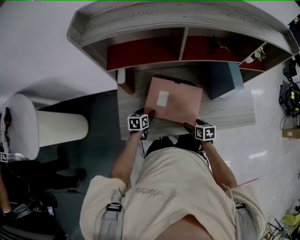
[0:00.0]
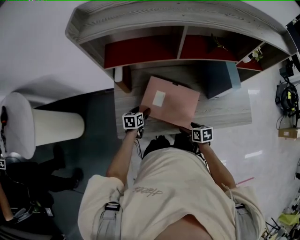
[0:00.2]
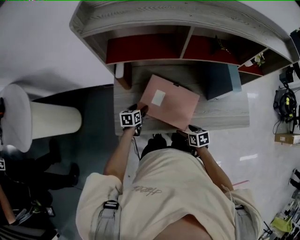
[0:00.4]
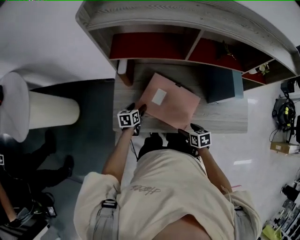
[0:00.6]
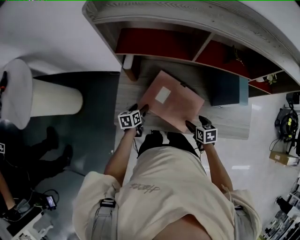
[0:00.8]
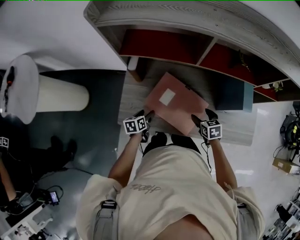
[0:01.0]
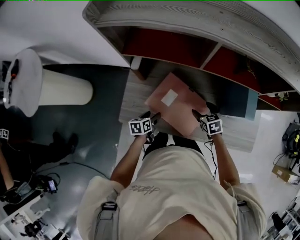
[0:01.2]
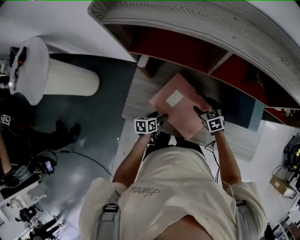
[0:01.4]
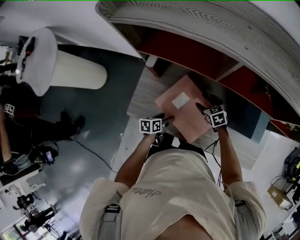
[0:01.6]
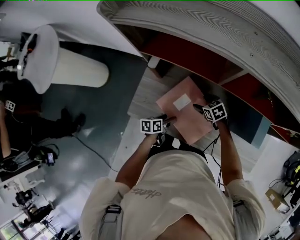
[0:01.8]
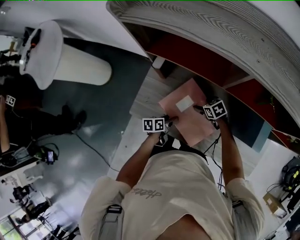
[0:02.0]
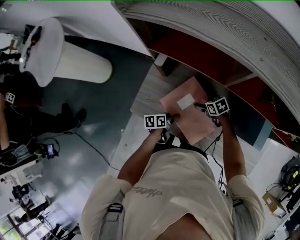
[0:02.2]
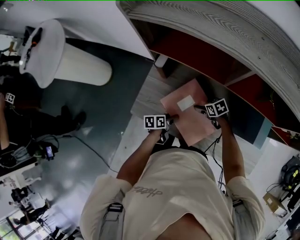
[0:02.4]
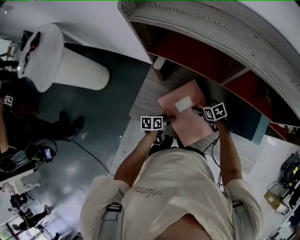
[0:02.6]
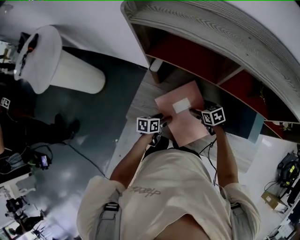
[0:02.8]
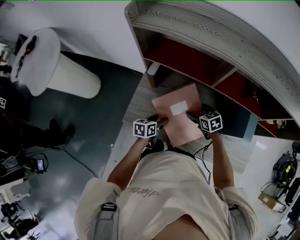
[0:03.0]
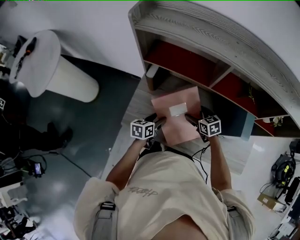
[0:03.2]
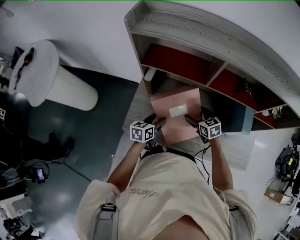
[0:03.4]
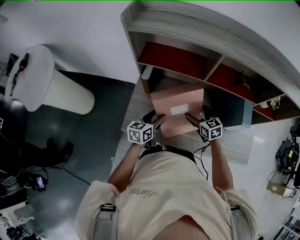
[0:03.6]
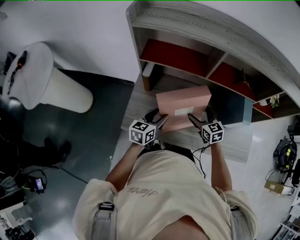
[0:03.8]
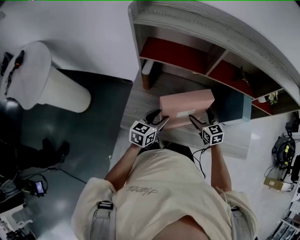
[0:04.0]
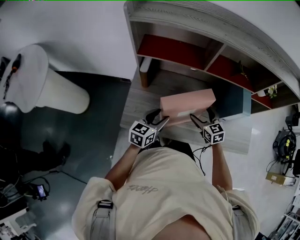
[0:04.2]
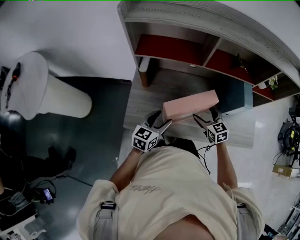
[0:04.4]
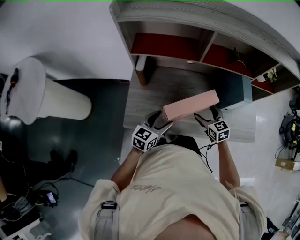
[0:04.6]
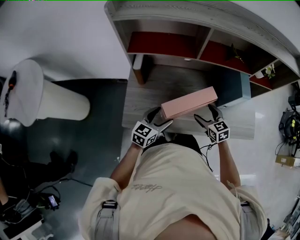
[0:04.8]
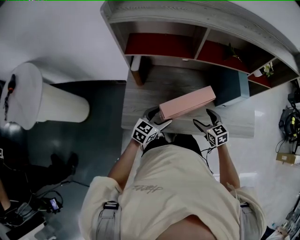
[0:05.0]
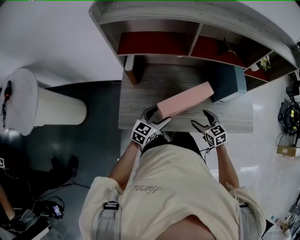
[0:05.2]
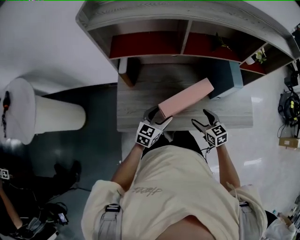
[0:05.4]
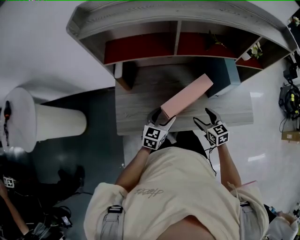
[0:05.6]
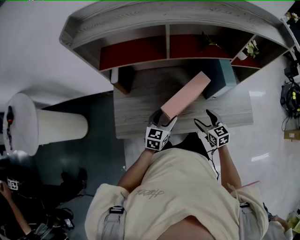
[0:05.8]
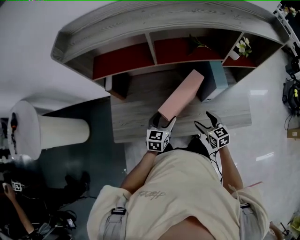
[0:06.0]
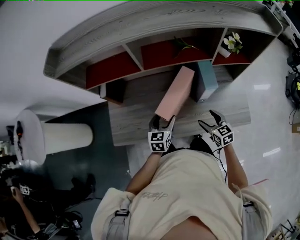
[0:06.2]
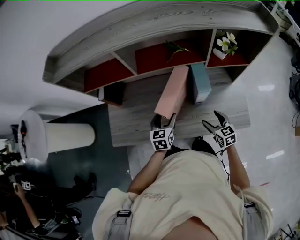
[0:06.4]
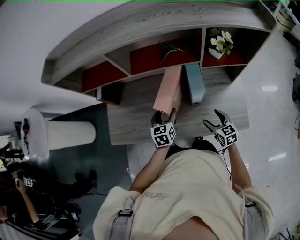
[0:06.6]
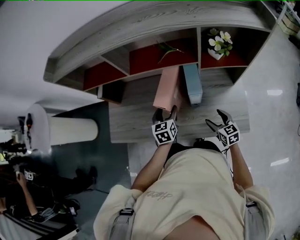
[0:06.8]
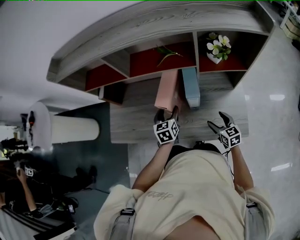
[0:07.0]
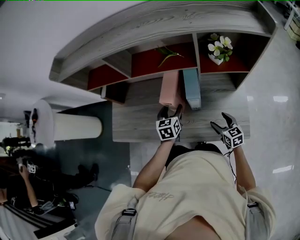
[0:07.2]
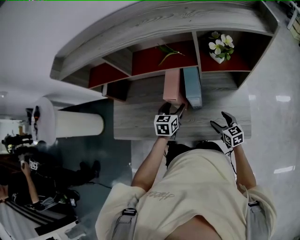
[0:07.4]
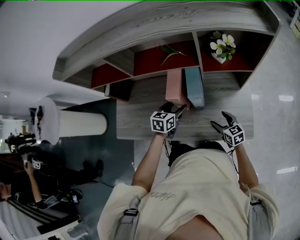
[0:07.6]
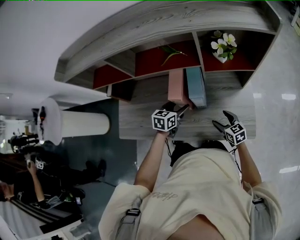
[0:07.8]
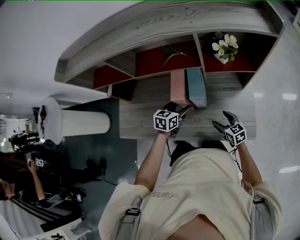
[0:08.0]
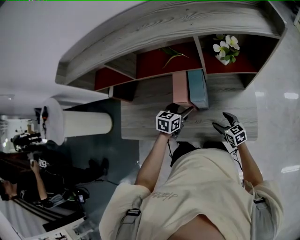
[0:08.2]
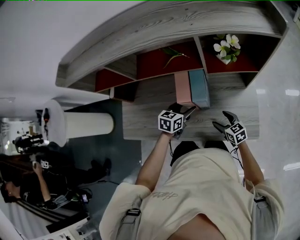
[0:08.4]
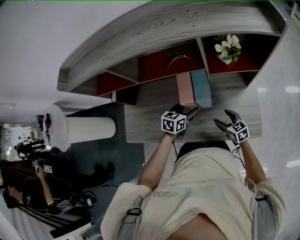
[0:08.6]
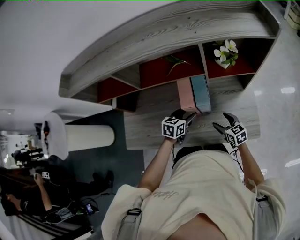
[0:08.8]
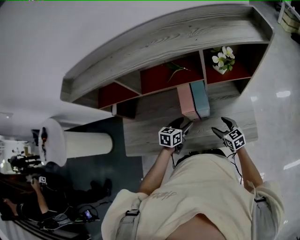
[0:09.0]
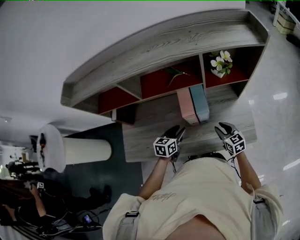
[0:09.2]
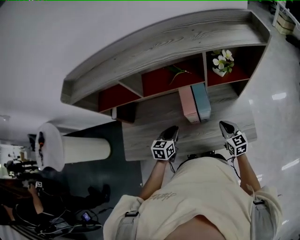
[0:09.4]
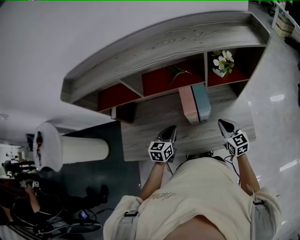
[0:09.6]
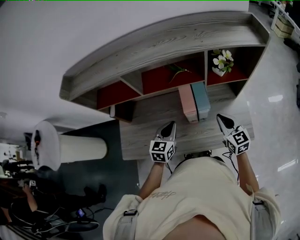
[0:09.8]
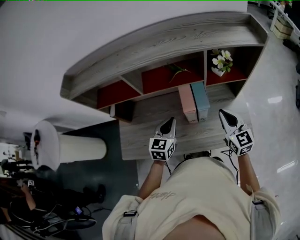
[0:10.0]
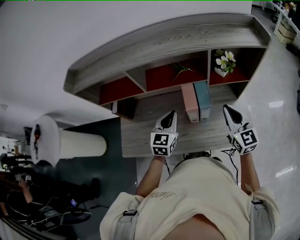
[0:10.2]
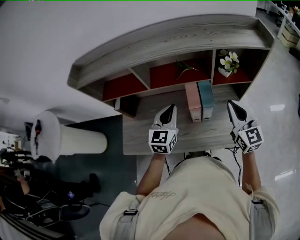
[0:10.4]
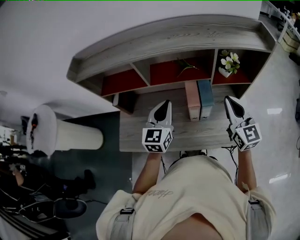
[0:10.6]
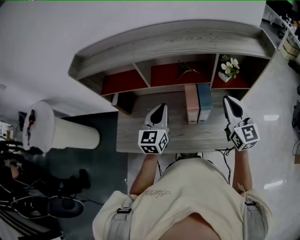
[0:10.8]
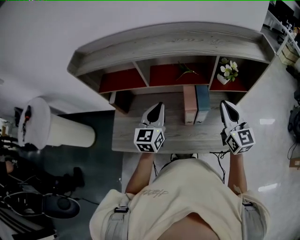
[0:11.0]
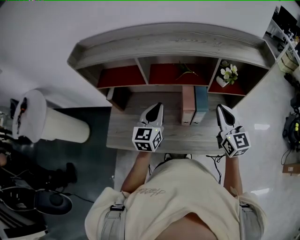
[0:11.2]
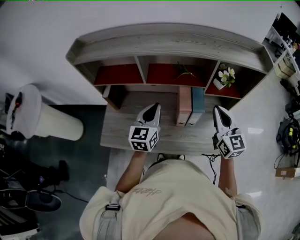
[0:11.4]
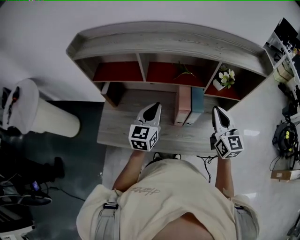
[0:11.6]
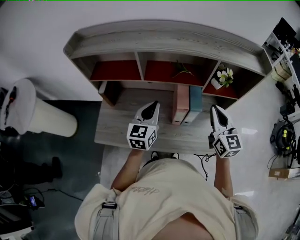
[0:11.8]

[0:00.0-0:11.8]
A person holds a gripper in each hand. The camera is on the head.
0:00.0 to 0:01.4: The left gripper is displaced backward by some 5 cm, and rotates roughly 30 degrees, while the right gripper goes some 15 cm forward, and rotates around the line of its fingers by approximately 50 degrees, counterclockwise from behind.
0:01.4 to 0:03.0: The left gripper heads upward, covering some 10 cm.
0:03.0 to 0:04.4: The right gripper moves backward and upward, roughly 10 cm, and changes its angle by roughly 30 degrees. Meanwhile the left gripper is displaced upward by about 10 cm, and turns by approximately 40 degrees.
0:04.4 to 0:06.0: The left gripper travels to the right by some 15 cm; the right gripper moves to the right and backward, some 15 cm.
0:06.0 to 0:07.4: The two grippers go some 20 cm to the right.
0:07.4 to 0:08.8: There are only small adjustments of the grippers.
0:08.8 to 0:10.4: Both grippers travel together upward, approximately 25 cm. The left gripper rotates about 40 degrees, and closes. Meanwhile the right gripper changes its angle by about 40 degrees, and closes up.
0:10.4 to 0:11.8: The grippers stay close to where they were, moving slightly.

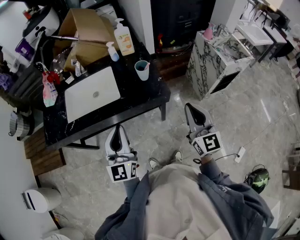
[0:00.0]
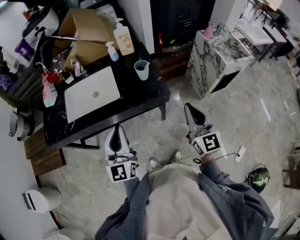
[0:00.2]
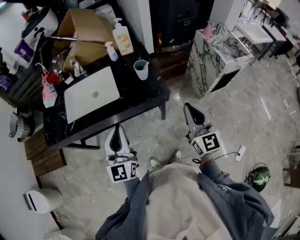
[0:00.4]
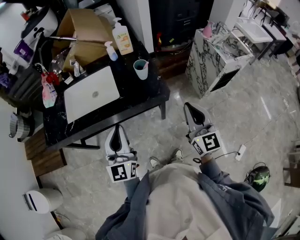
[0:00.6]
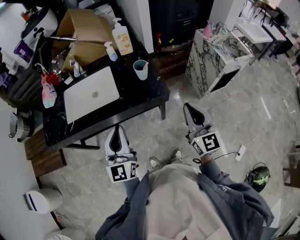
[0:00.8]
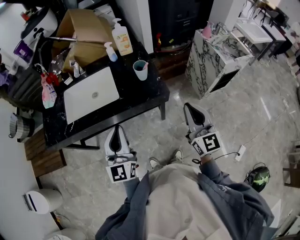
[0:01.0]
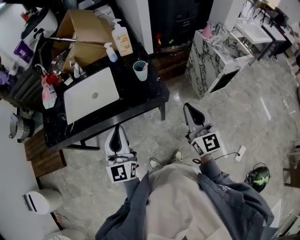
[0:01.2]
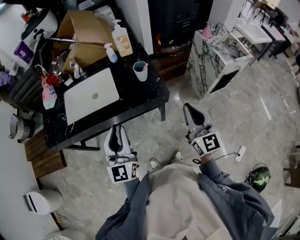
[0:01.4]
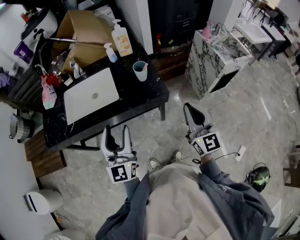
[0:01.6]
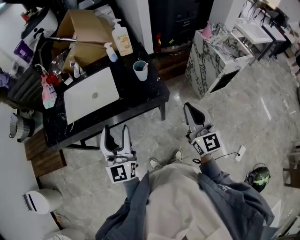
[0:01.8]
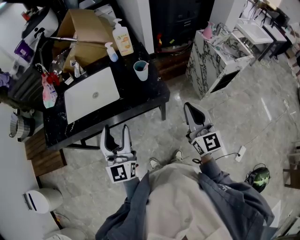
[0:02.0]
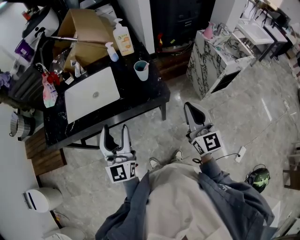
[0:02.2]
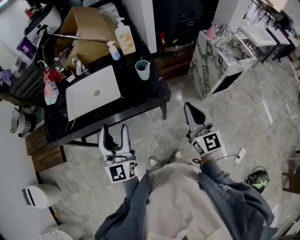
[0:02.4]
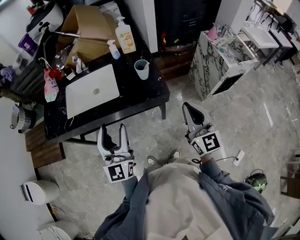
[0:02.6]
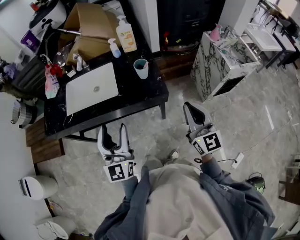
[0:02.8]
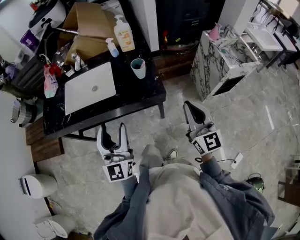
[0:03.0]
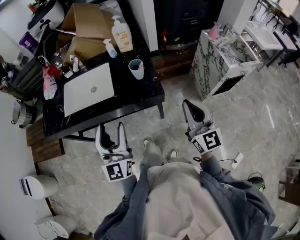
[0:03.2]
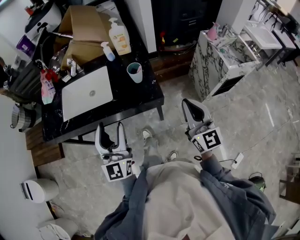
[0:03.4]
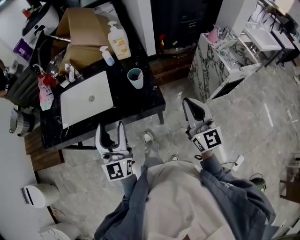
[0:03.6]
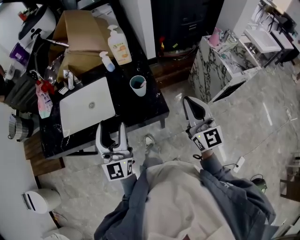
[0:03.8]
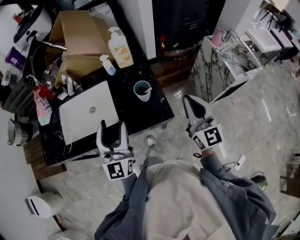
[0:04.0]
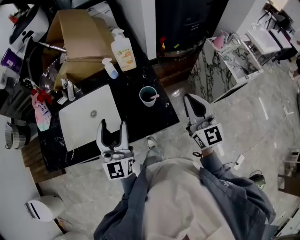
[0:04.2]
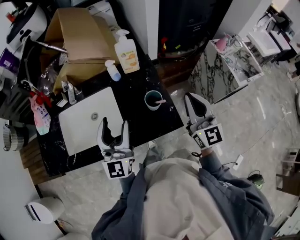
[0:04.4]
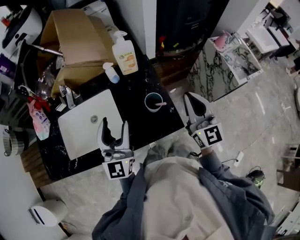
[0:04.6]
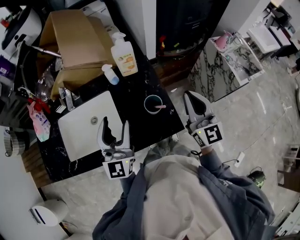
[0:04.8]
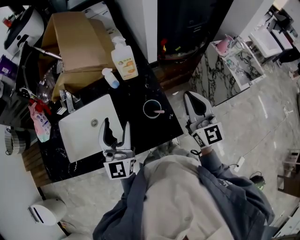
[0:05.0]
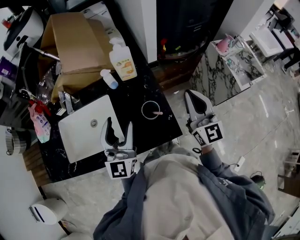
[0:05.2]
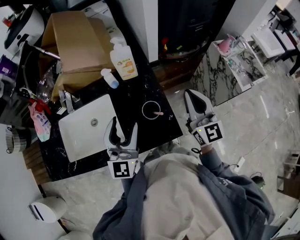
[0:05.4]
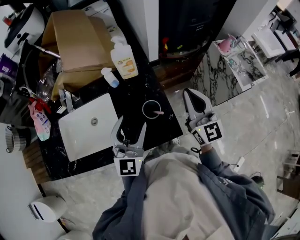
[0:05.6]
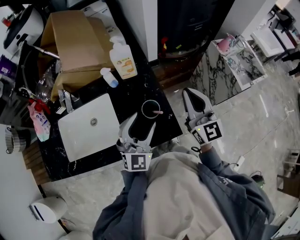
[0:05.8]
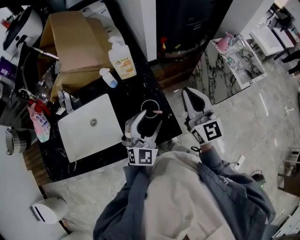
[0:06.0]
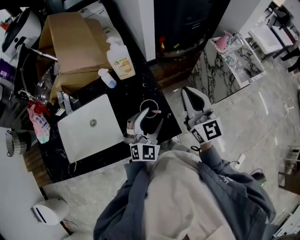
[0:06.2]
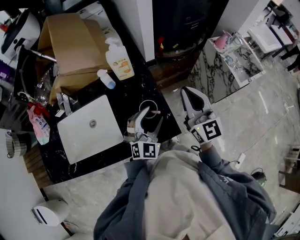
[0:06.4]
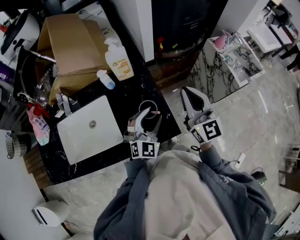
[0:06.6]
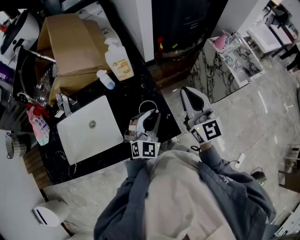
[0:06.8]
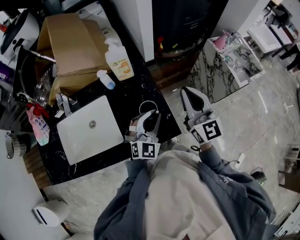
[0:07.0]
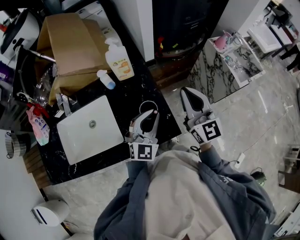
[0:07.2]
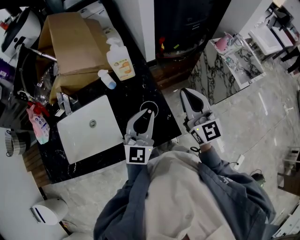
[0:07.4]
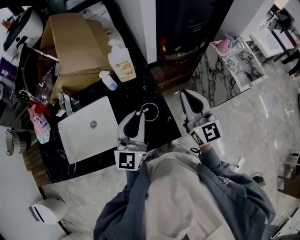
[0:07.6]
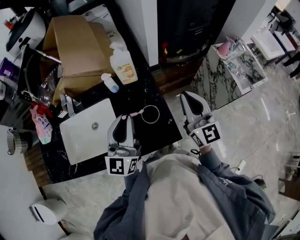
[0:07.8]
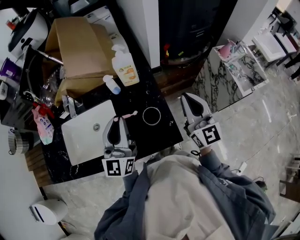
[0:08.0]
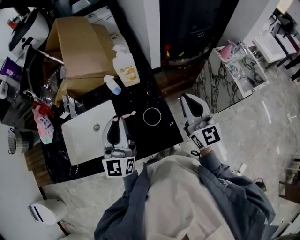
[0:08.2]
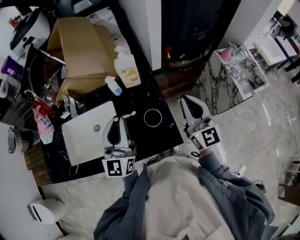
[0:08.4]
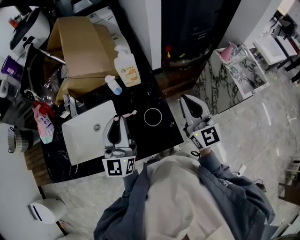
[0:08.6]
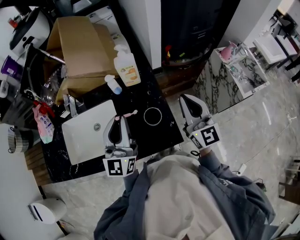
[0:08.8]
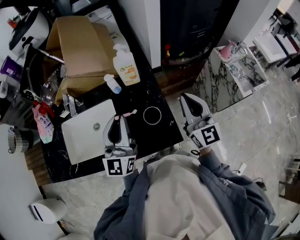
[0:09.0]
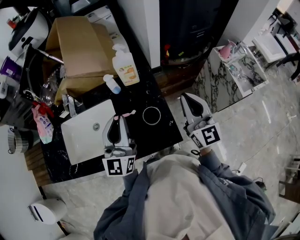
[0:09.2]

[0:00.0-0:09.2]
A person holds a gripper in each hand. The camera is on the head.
0:00.0 to 0:01.6: The left gripper opens up.
0:01.6 to 0:03.0: The grippers make only small movements.
0:03.0 to 0:04.6: Both grippers travel together forward, about 25 cm.
0:04.6 to 0:06.2: The right gripper ends up approximately 5 cm from where it was. Meanwhile the left gripper travels to the right and downward by approximately 20 cm, and turns by some 40 degrees.
0:06.2 to 0:07.6: The left gripper moves upward and to the left, approximately 10 cm, rotates some 40 degrees, and closes up.
0:07.6 to 0:09.2: The left gripper goes roughly 10 cm to the left.

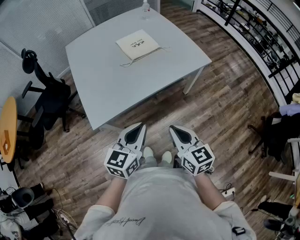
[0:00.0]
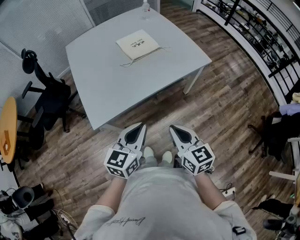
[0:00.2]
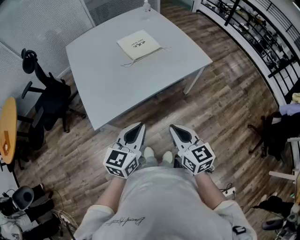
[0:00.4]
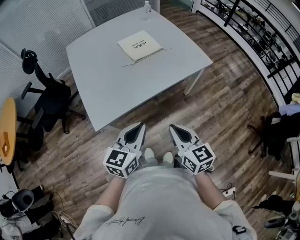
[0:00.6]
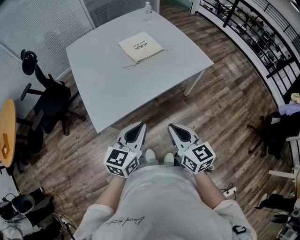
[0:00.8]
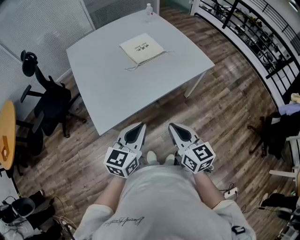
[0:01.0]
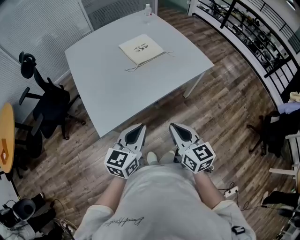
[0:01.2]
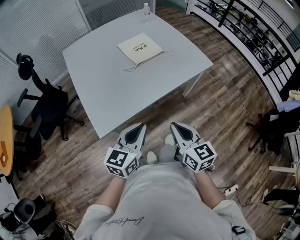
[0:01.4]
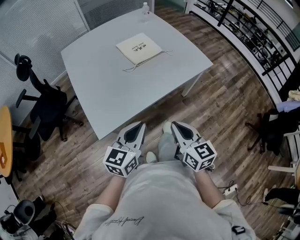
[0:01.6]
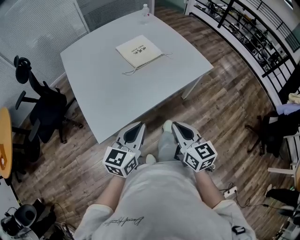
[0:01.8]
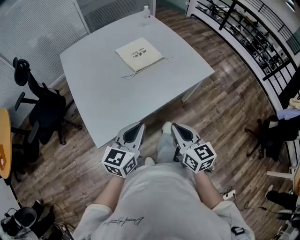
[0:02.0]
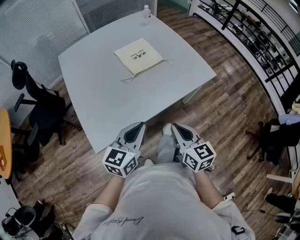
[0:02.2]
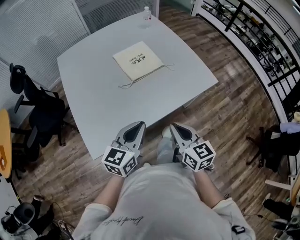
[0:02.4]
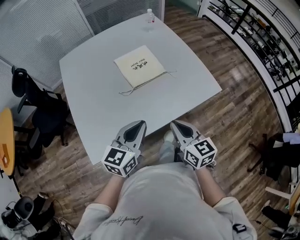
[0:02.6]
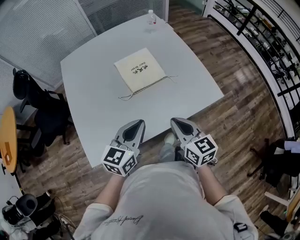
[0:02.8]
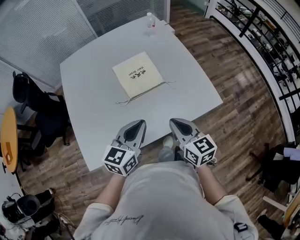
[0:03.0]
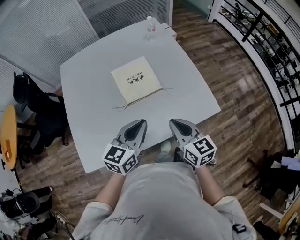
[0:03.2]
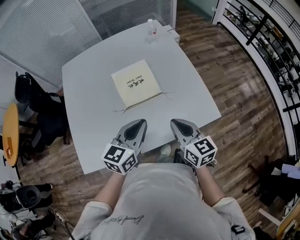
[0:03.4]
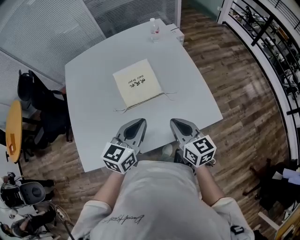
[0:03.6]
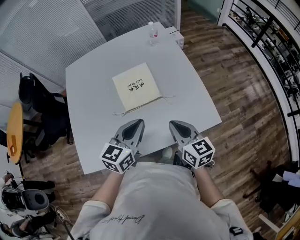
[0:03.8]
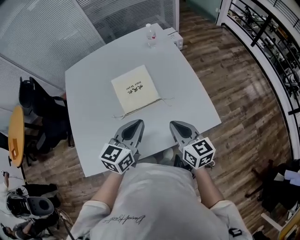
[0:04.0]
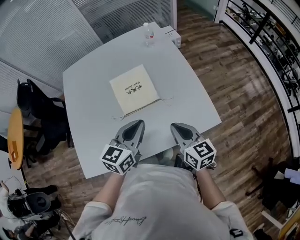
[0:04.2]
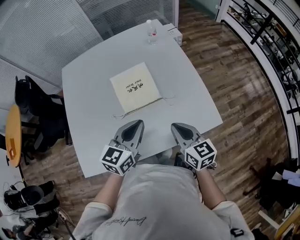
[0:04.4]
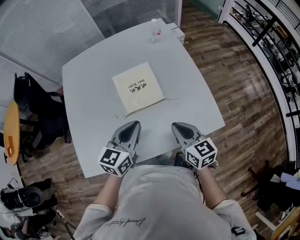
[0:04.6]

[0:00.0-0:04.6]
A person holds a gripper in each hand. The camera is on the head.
0:00.0 to 0:01.6: The right gripper ends up about 5 cm from where it was; the left gripper heads to the left, covering approximately 5 cm.
0:01.6 to 0:03.0: The grippers both shift forward by approximately 25 cm.
0:03.0 to 0:04.6: Both grippers move forward, about 10 cm.
